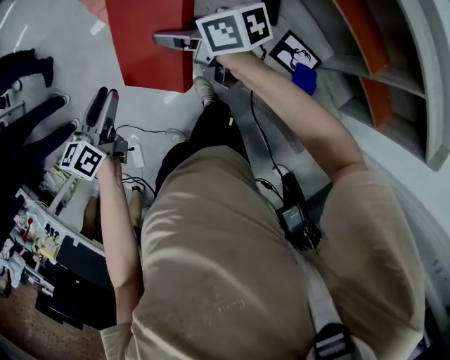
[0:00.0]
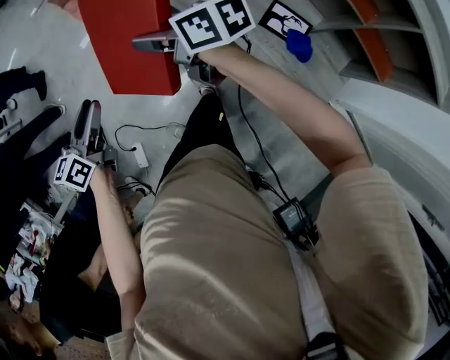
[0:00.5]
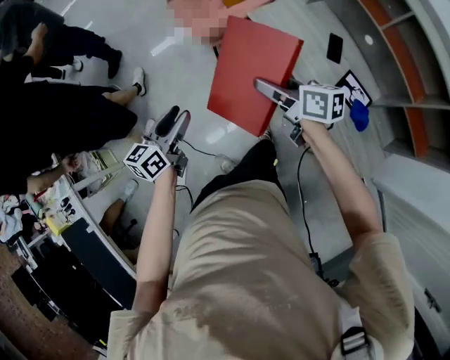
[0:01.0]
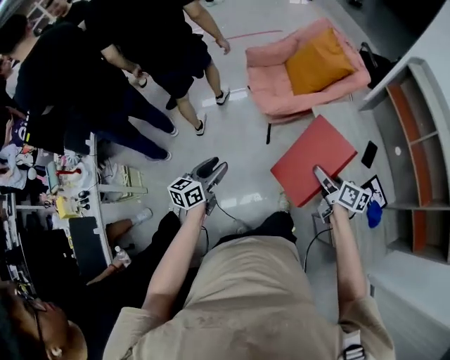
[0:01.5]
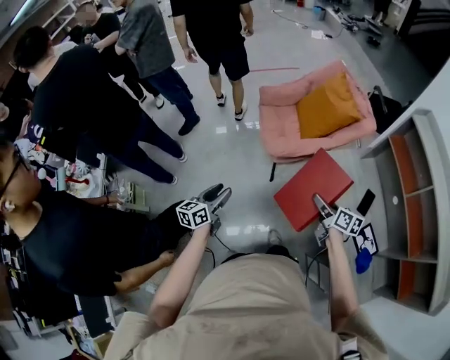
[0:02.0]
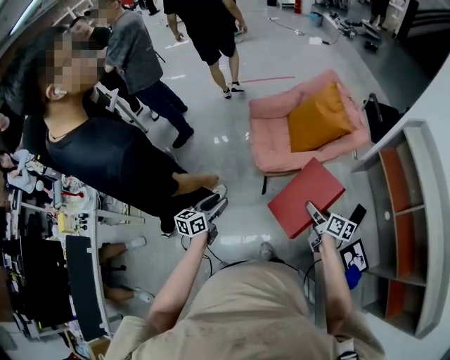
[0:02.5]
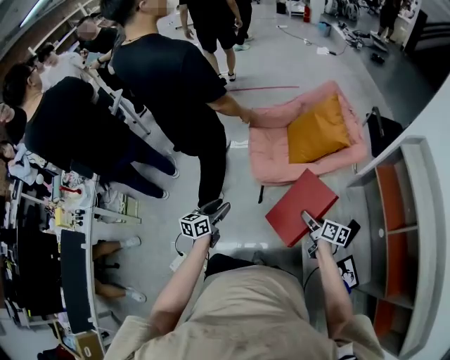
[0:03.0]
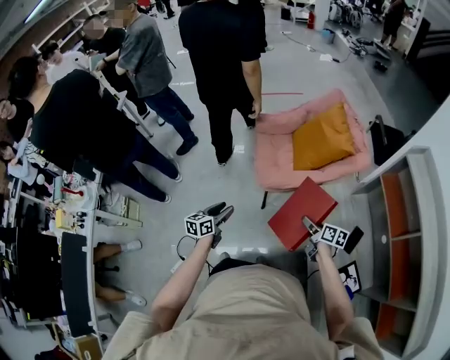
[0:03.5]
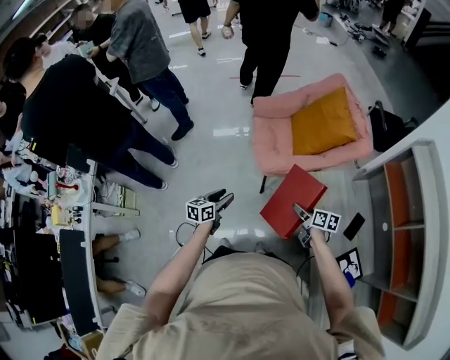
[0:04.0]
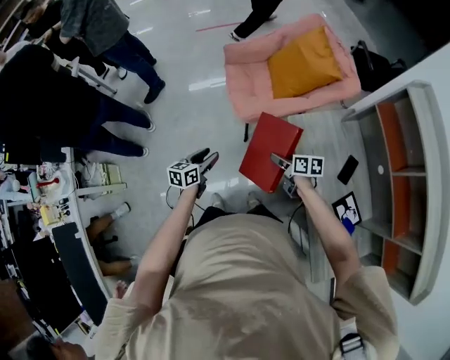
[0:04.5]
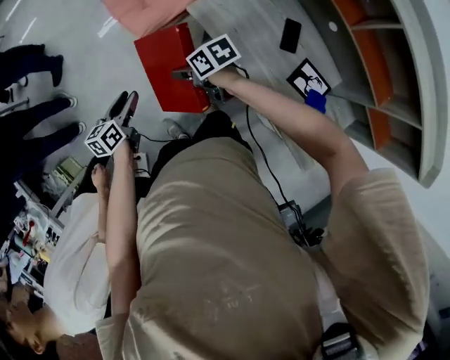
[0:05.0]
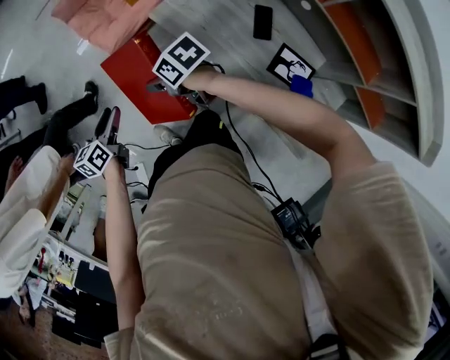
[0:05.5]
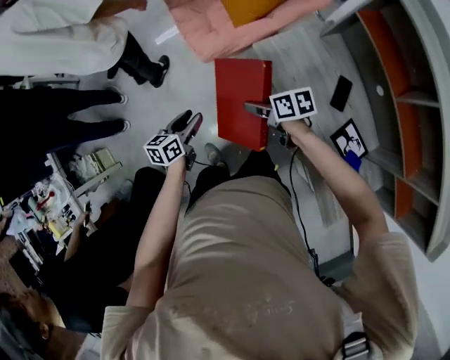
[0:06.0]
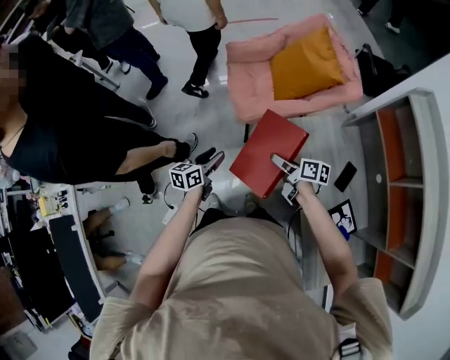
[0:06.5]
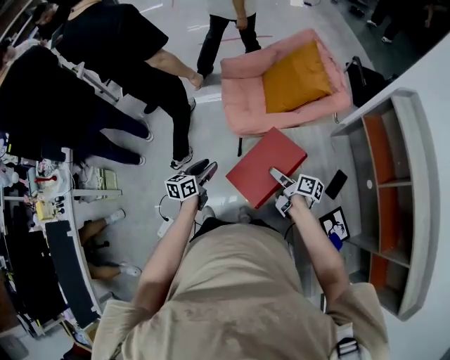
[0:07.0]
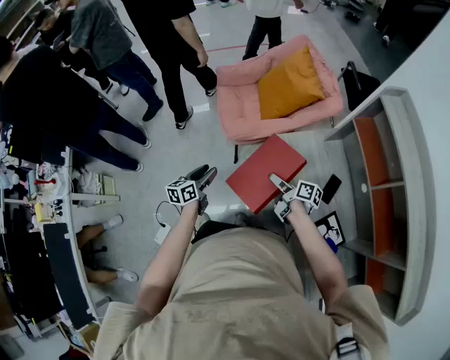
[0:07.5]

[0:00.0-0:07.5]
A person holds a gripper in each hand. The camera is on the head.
0:00.0 to 0:02.0: The left gripper goes approximately 25 cm to the left, while the right gripper travels backward and to the left by roughly 10 cm.
0:02.0 to 0:04.0: The left gripper travels forward, downward and to the right by approximately 15 cm; the right gripper moves downward and forward, about 15 cm.
0:04.0 to 0:05.5: The right gripper rotates approximately 20 degrees; the left gripper is displaced to the right by some 15 cm.
0:05.5 to 0:07.5: The right gripper shifts some 10 cm to the right, and swivels roughly 40 degrees; the left gripper heads upward, covering roughly 5 cm.

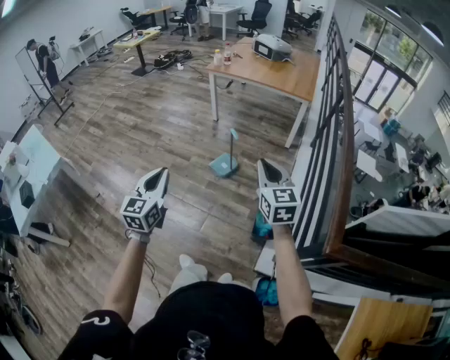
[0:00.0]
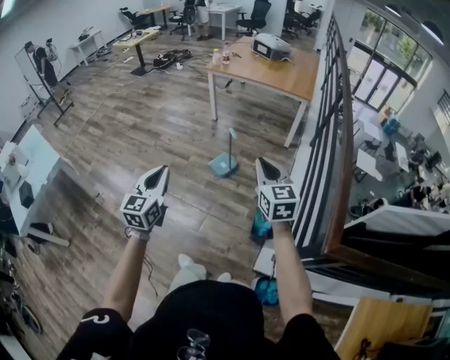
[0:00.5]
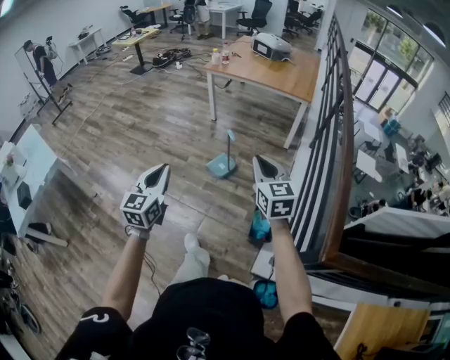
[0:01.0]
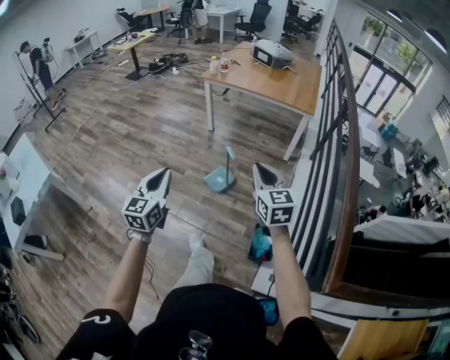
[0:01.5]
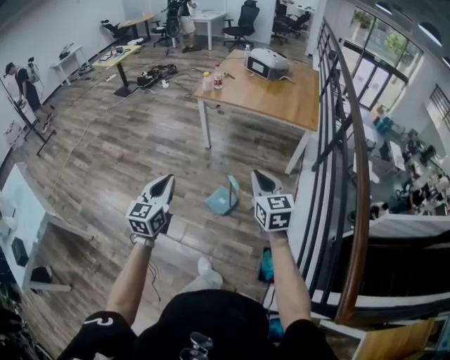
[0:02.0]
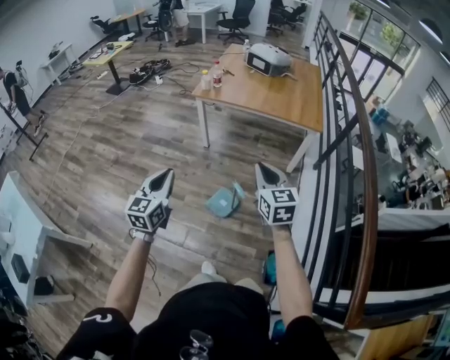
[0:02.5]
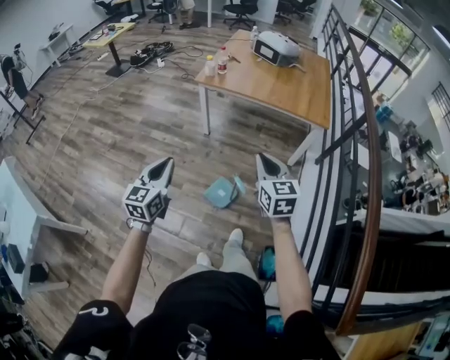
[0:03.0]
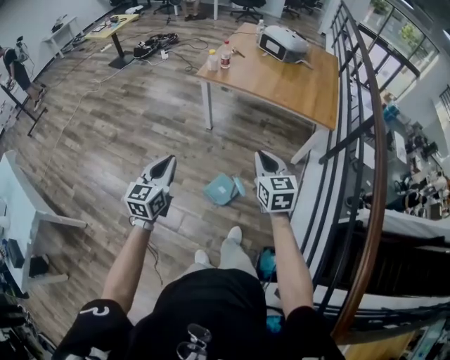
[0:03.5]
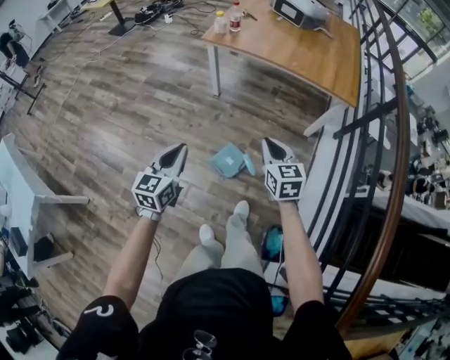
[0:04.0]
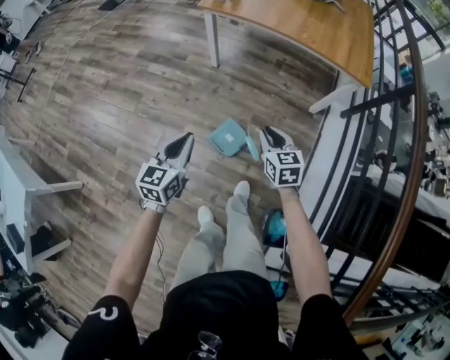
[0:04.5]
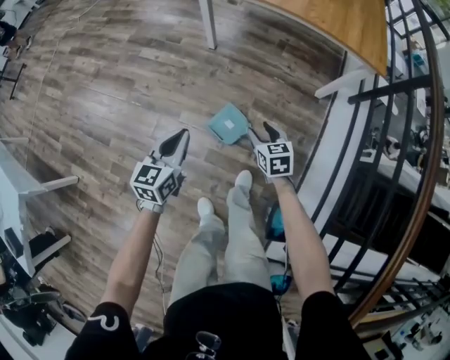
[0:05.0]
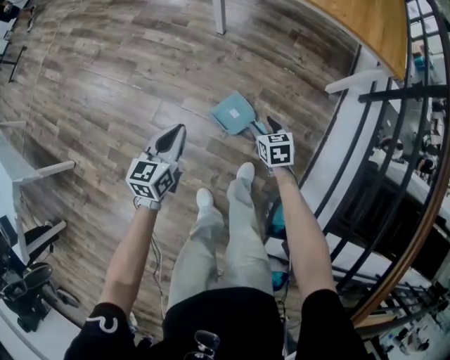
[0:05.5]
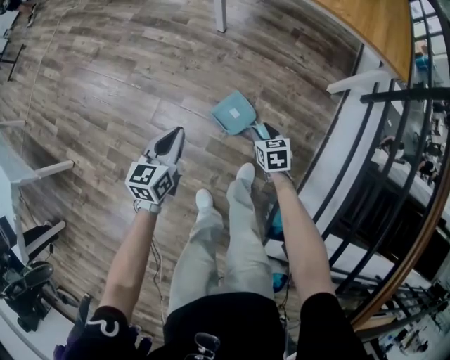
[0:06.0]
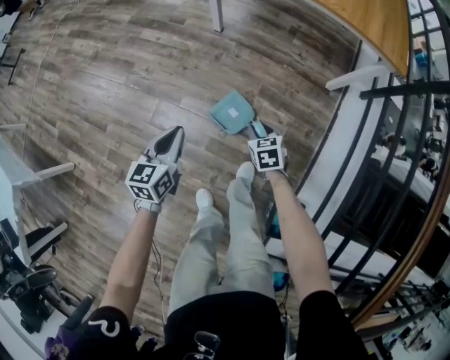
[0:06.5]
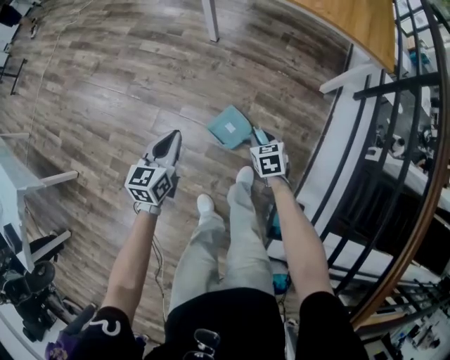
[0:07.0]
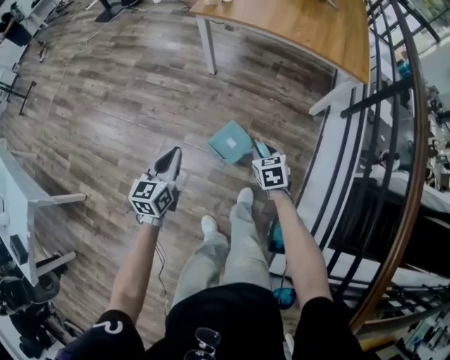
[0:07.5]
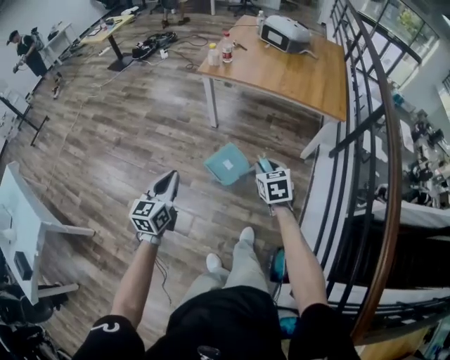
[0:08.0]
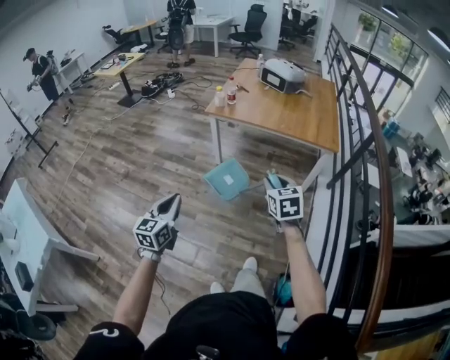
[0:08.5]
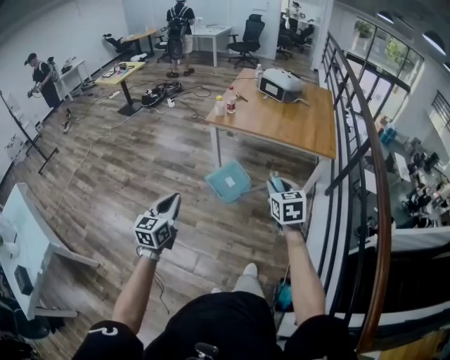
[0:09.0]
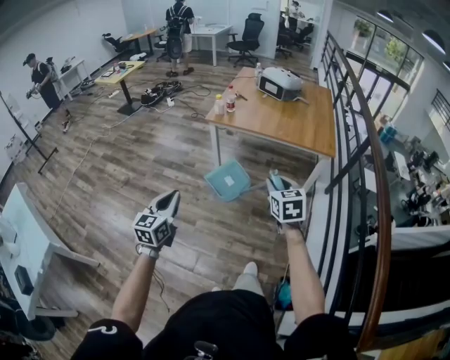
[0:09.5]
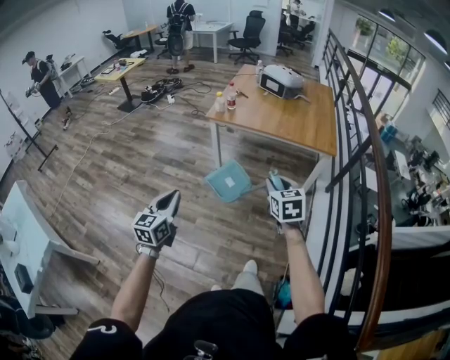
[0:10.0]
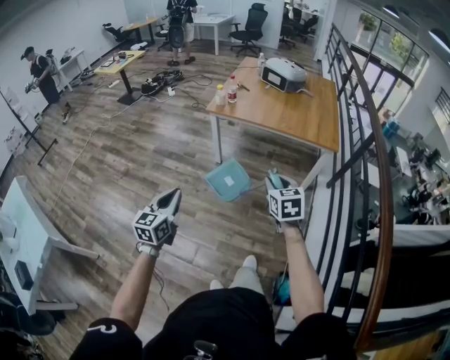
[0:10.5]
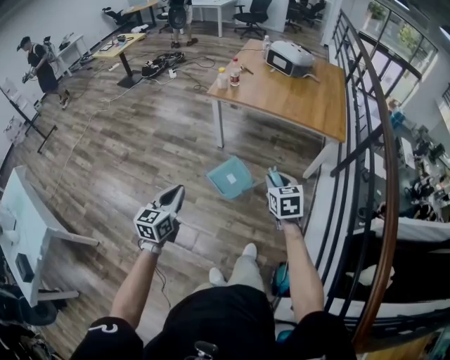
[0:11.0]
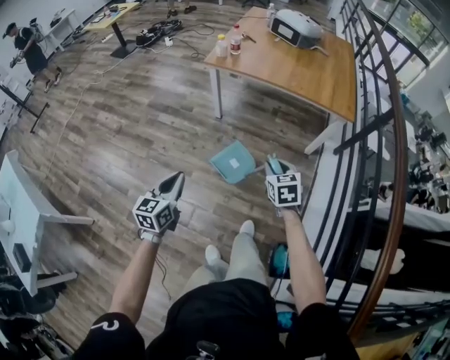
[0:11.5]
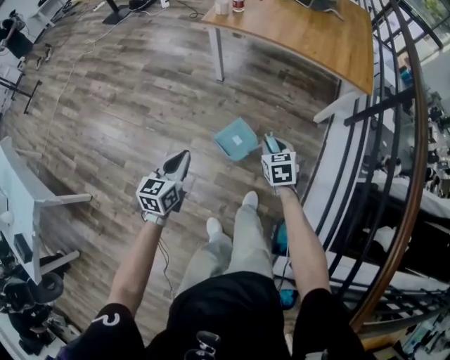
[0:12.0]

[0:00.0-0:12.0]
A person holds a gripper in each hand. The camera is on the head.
0:00.0 to 0:02.0: Both grippers move forward, about 35 cm.
0:02.0 to 0:04.0: Both grippers travel together forward and downward, approximately 30 cm.
0:04.0 to 0:06.0: The two grippers go about 35 cm downward. The right gripper rotates about 30 degrees, and opens its fingers.
0:06.0 to 0:08.0: Both grippers move upward, some 35 cm.
0:08.0 to 0:10.0: The right gripper goes approximately 15 cm upward. The left gripper travels upward by roughly 10 cm.
0:10.0 to 0:12.0: Both grippers travel together downward, approximately 25 cm.

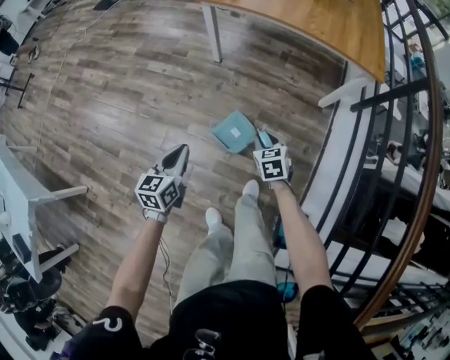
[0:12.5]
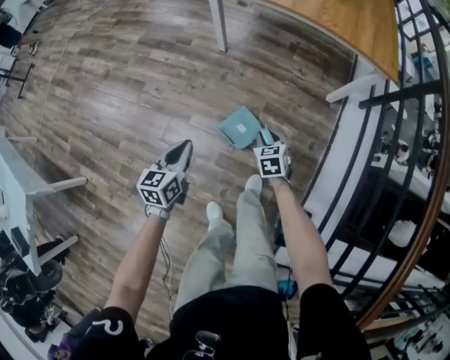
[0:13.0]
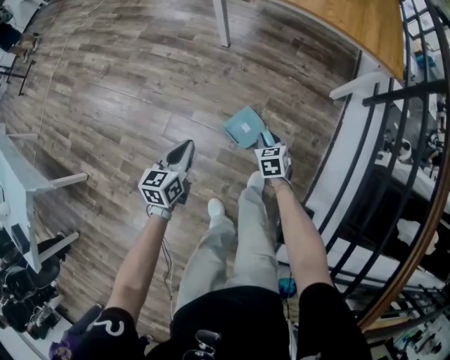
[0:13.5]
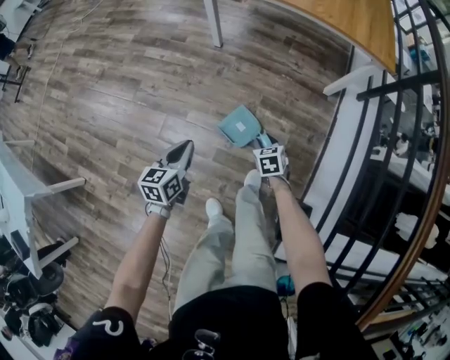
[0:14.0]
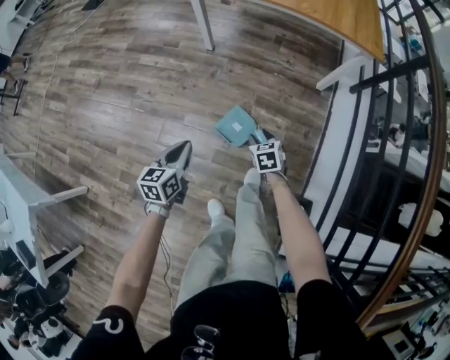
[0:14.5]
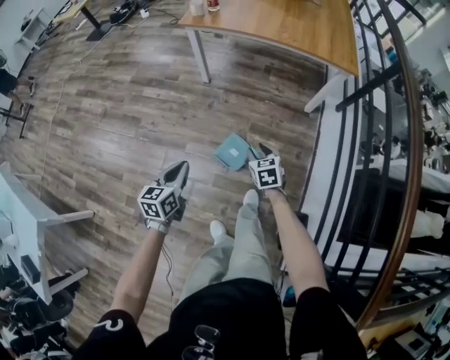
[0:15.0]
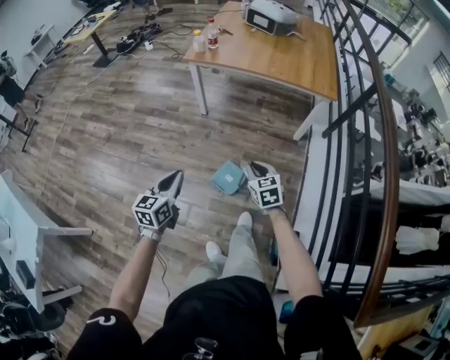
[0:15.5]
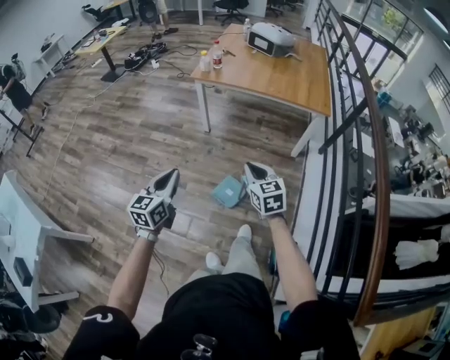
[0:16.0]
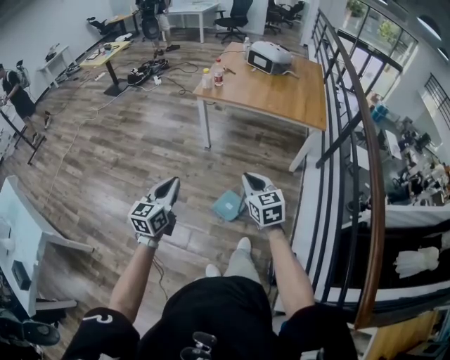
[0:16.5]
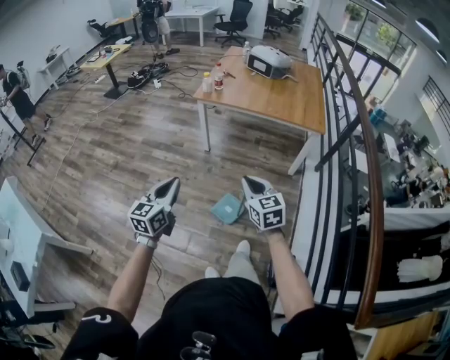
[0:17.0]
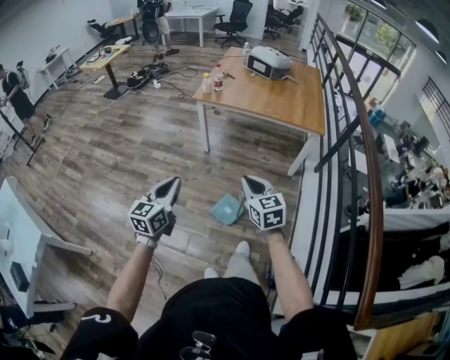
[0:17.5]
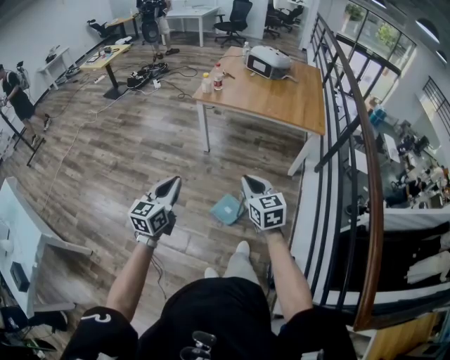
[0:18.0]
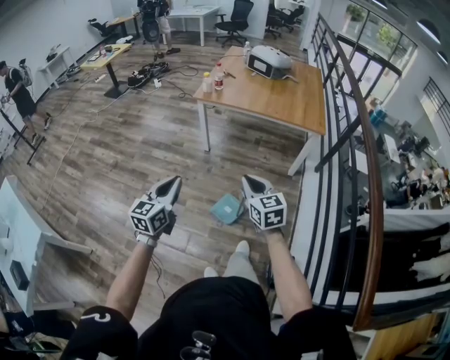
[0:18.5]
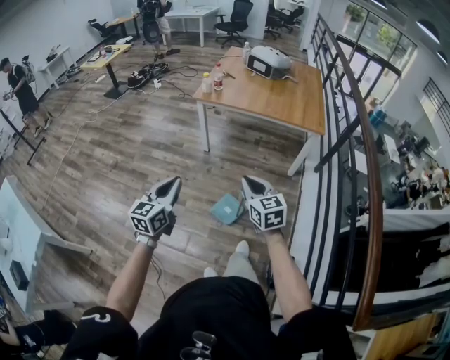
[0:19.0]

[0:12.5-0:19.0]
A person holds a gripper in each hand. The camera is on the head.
0:12.5 to 0:14.5: The right gripper travels downward by about 10 cm, and opens. Meanwhile the left gripper shifts about 5 cm downward.
0:14.5 to 0:17.0: Both grippers travel together upward, some 40 cm. The right gripper tips its fingers upward by about 30 degrees, and closes its fingers. The left gripper changes its angle by approximately 30 degrees.
0:17.0 to 0:19.0: The grippers move only a little.

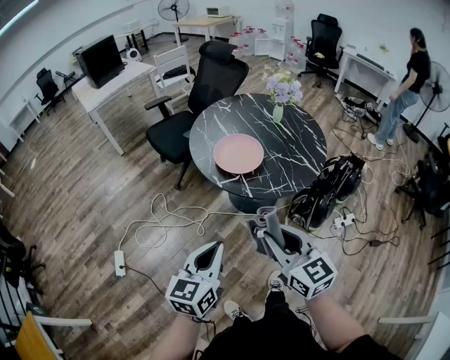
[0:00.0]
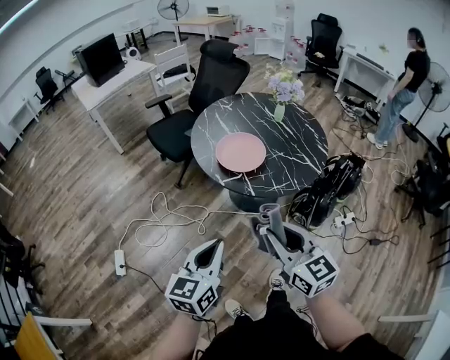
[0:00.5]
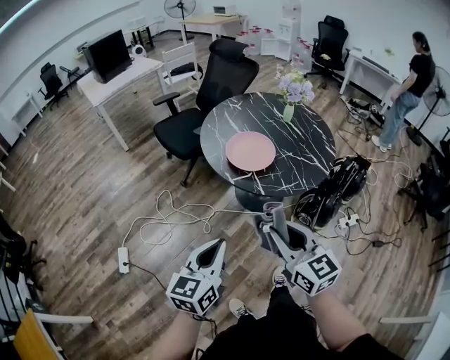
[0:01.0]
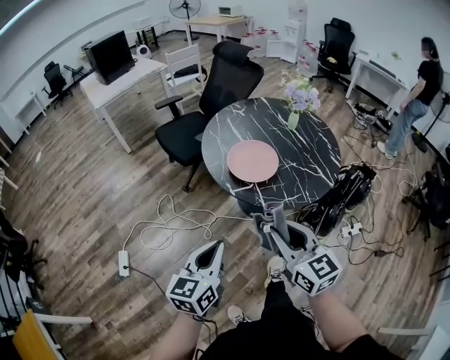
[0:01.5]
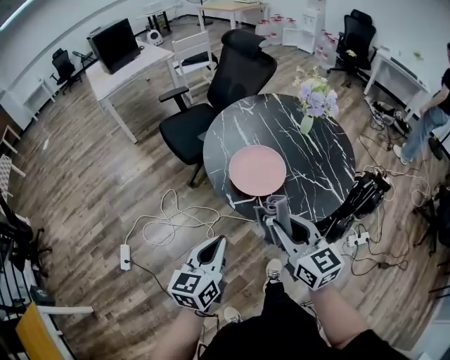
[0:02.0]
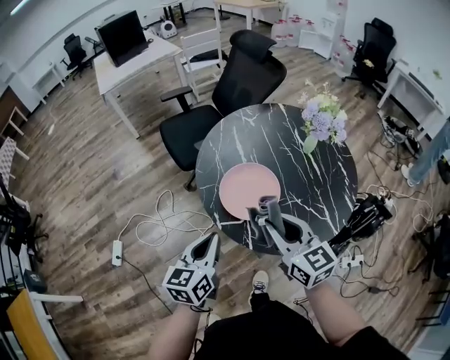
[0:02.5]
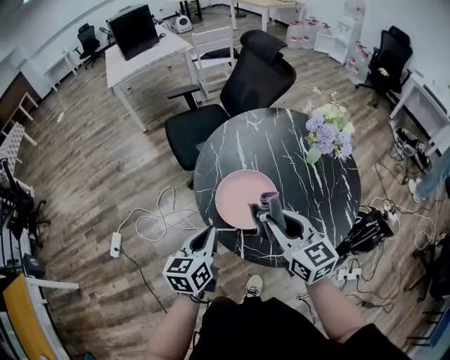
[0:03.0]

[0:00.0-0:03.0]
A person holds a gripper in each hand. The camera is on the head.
0:00.0 to 0:01.5: The right gripper heads forward, covering approximately 5 cm. The left gripper moves roughly 5 cm.
0:01.5 to 0:03.0: Both grippers move forward and to the right, approximately 30 cm. The left gripper changes its angle by roughly 20 degrees.
